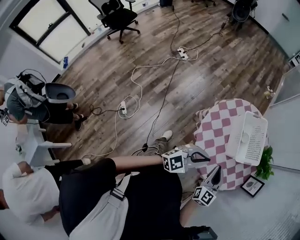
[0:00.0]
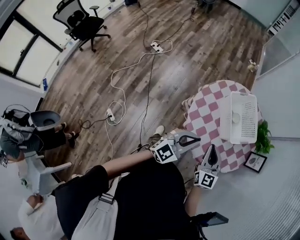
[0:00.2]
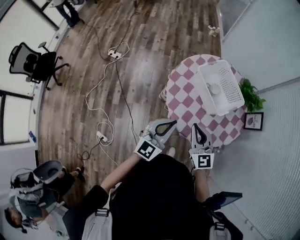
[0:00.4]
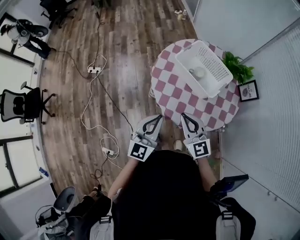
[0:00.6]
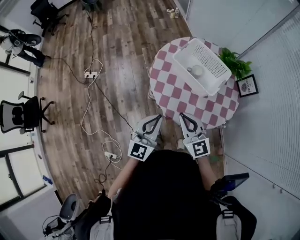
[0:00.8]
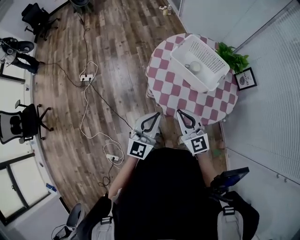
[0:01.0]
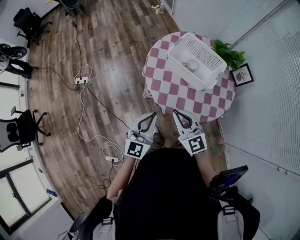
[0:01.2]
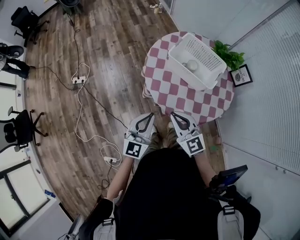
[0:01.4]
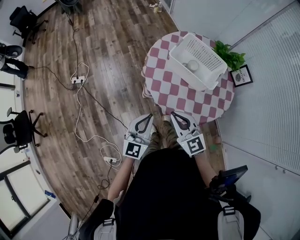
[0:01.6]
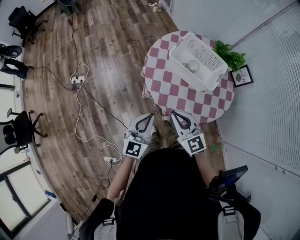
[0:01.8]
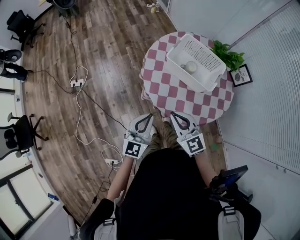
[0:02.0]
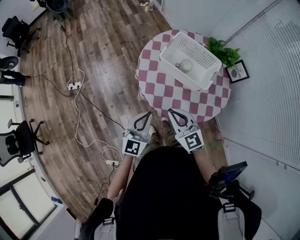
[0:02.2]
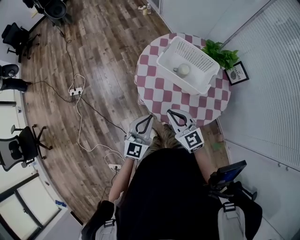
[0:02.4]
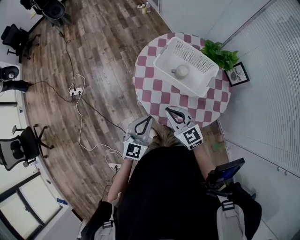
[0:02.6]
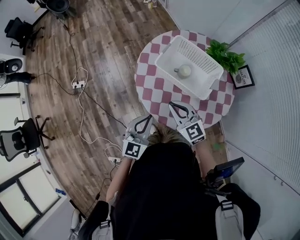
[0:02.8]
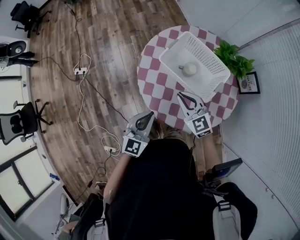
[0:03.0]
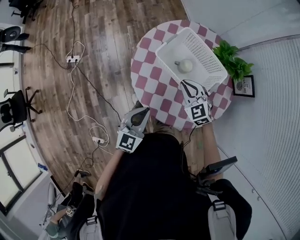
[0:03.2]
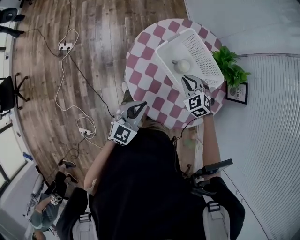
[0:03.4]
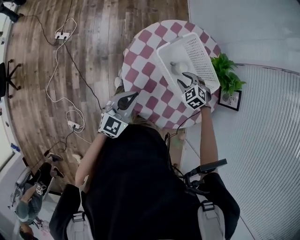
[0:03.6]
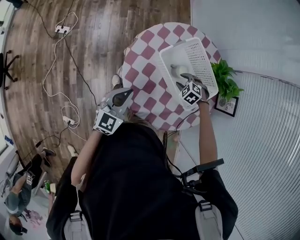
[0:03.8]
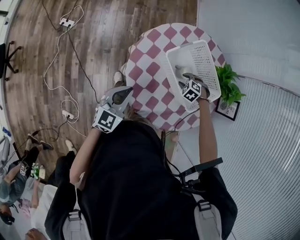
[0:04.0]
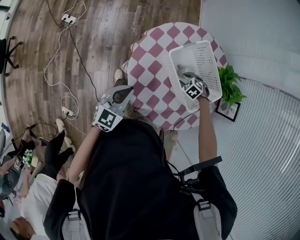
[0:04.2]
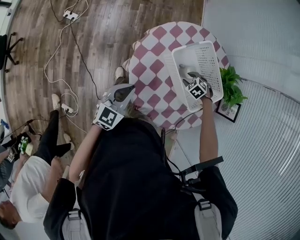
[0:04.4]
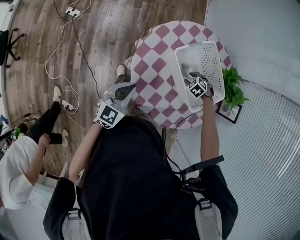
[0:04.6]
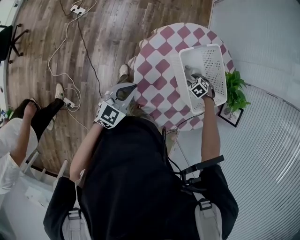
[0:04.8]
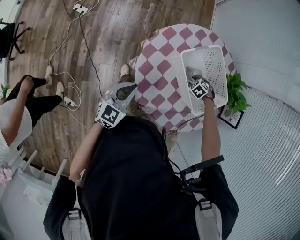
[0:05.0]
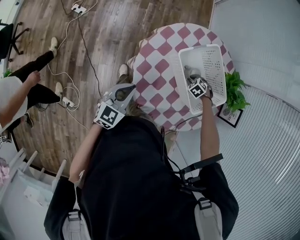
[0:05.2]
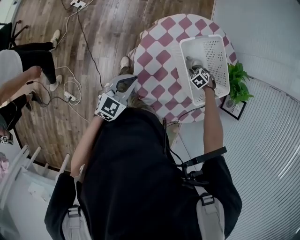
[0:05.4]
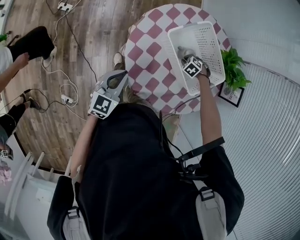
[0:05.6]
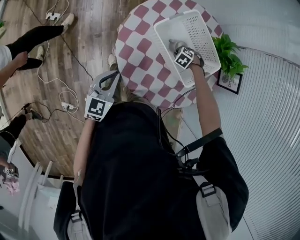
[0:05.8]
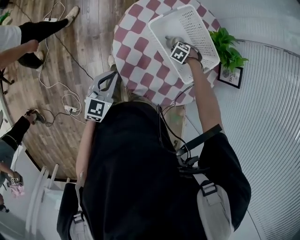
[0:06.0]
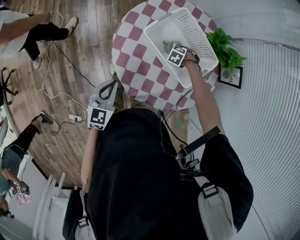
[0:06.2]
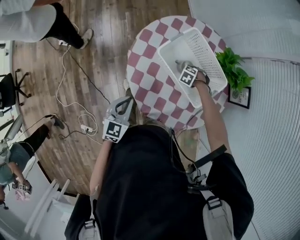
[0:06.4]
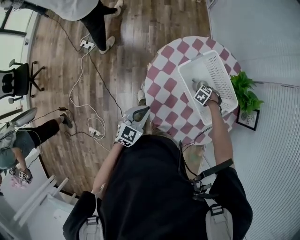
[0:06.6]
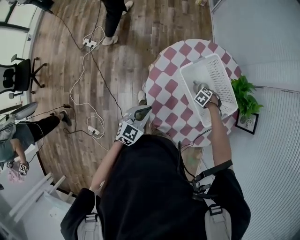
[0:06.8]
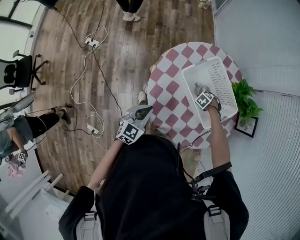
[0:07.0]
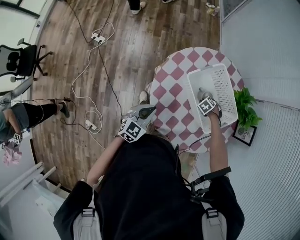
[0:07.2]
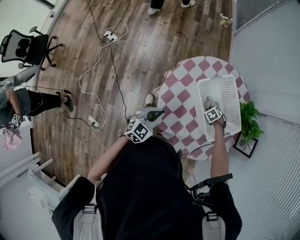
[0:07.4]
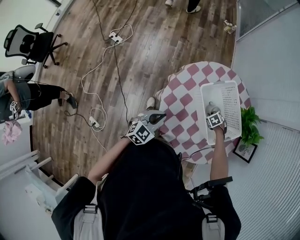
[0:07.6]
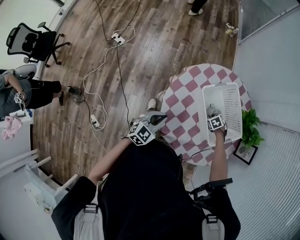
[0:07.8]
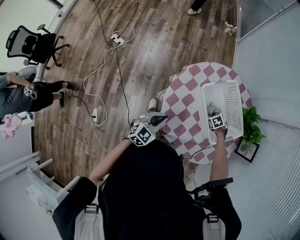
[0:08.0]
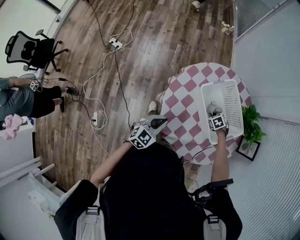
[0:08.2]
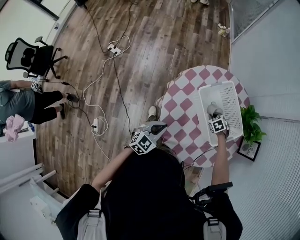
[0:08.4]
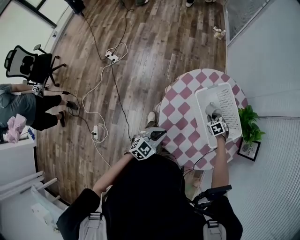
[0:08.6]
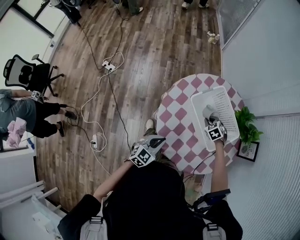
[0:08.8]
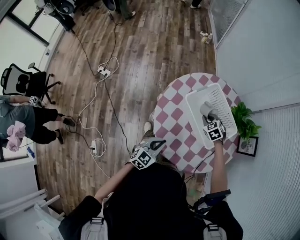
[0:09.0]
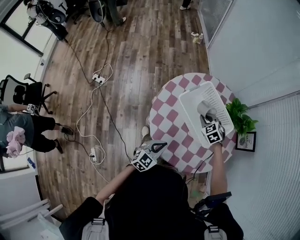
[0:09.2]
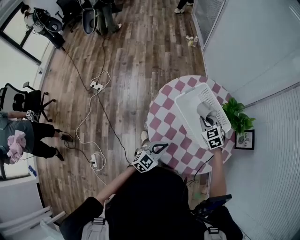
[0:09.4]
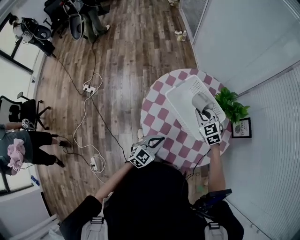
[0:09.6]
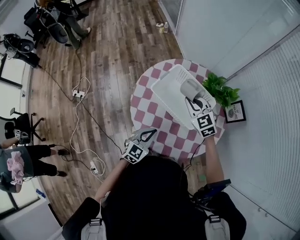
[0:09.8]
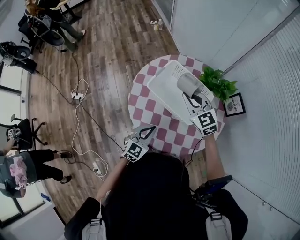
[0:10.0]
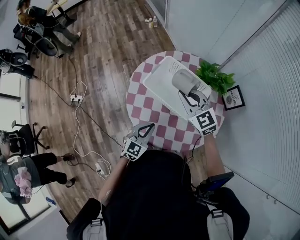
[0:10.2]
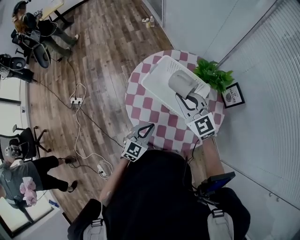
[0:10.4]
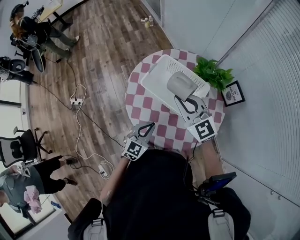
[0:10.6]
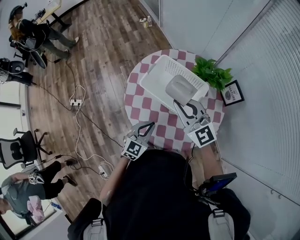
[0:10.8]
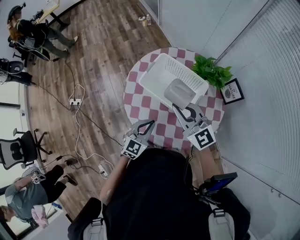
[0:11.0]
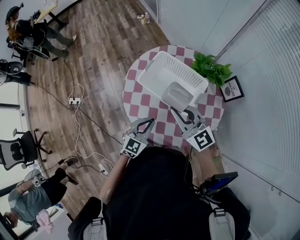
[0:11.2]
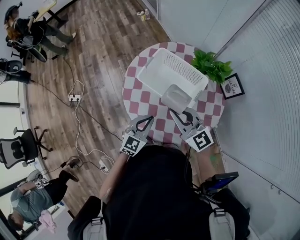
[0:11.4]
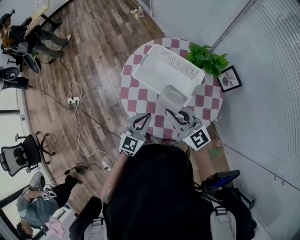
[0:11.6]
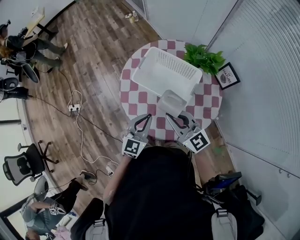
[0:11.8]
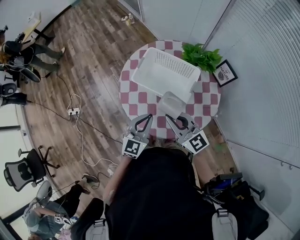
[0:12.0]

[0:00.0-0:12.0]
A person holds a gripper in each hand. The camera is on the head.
0:00.0 to 0:01.6: The left gripper is displaced to the left and forward by about 25 cm; the right gripper is displaced to the left by roughly 20 cm.
0:01.6 to 0:03.0: The right gripper moves forward and to the right, approximately 20 cm. Meanwhile the left gripper heads to the right and forward, covering about 15 cm.
0:03.0 to 0:04.4: The right gripper shifts some 25 cm downward, tips its fingers downward by approximately 60 degrees, and opens up. The left gripper changes place by some 10 cm.
0:04.4 to 0:06.0: The right gripper is displaced downward by some 5 cm, and closes its fingers.
0:06.0 to 0:07.6: There are only small adjustments of the grippers.
0:07.6 to 0:09.0: The left gripper moves some 10 cm, while the right gripper goes roughly 15 cm upward, and swivels roughly 30 degrees.
0:09.0 to 0:10.4: The right gripper goes roughly 25 cm upward, and angles its fingers upward, by some 40 degrees. Meanwhile the left gripper moves to the right, approximately 5 cm.
0:10.4 to 0:12.0: The left gripper is displaced upward by roughly 5 cm. Meanwhile the right gripper is displaced backward by about 15 cm.

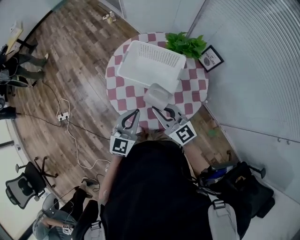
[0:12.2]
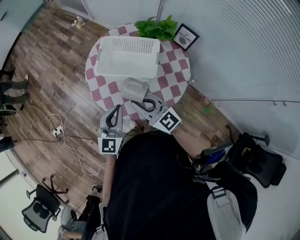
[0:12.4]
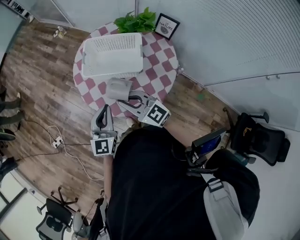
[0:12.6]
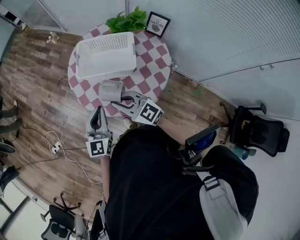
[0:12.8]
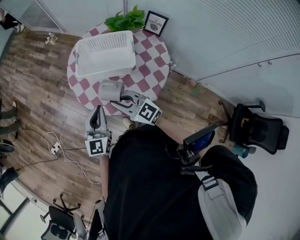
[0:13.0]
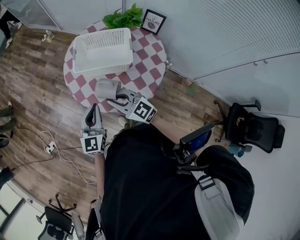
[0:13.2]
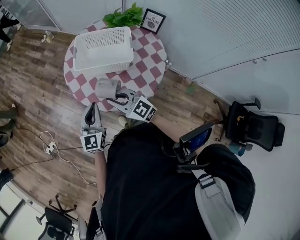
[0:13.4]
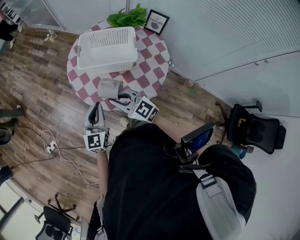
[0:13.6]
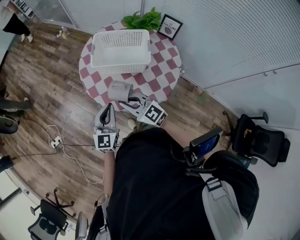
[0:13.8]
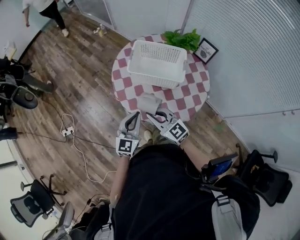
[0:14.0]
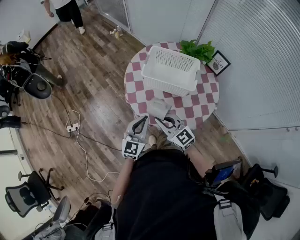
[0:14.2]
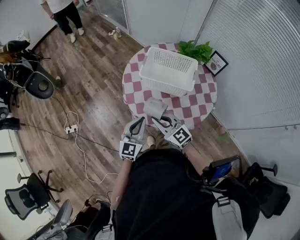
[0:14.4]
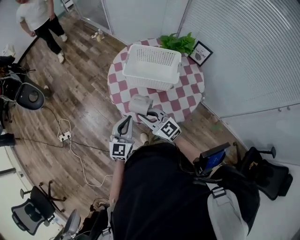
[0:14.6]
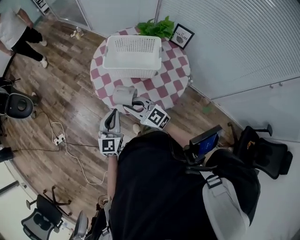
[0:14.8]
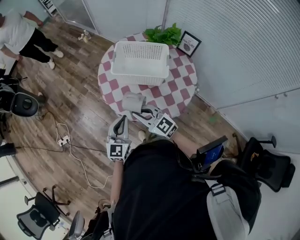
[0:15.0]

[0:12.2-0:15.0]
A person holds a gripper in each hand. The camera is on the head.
0:12.2 to 0:13.6: Both grippers move to the left, some 10 cm.
0:13.6 to 0:15.0: The left gripper moves backward, about 5 cm.

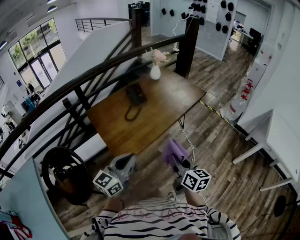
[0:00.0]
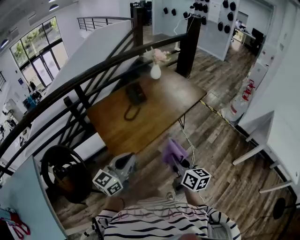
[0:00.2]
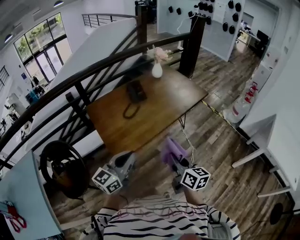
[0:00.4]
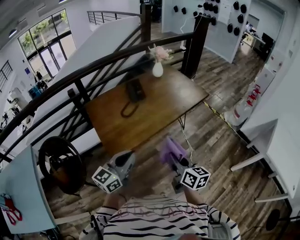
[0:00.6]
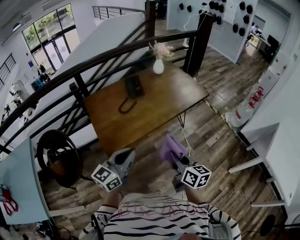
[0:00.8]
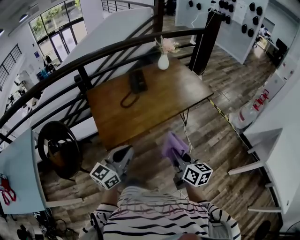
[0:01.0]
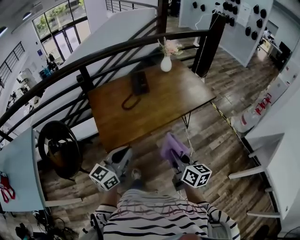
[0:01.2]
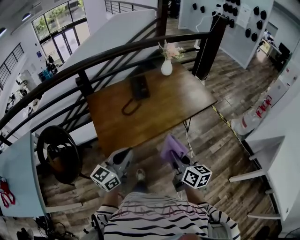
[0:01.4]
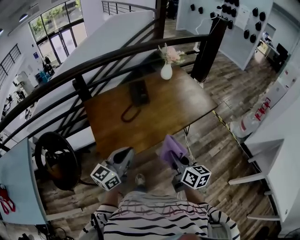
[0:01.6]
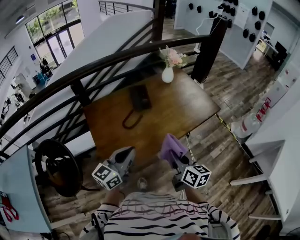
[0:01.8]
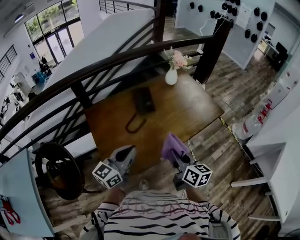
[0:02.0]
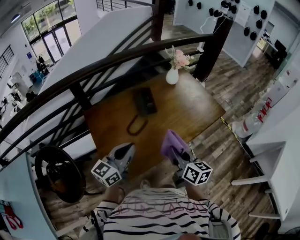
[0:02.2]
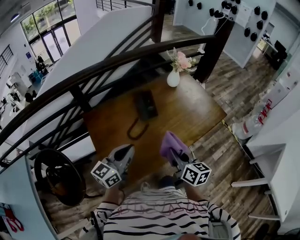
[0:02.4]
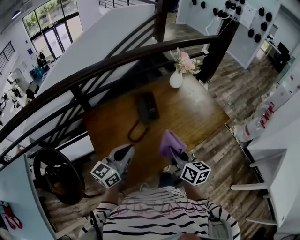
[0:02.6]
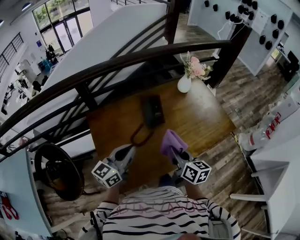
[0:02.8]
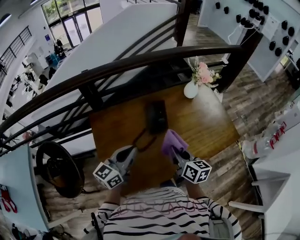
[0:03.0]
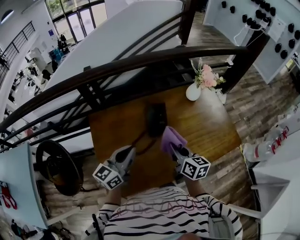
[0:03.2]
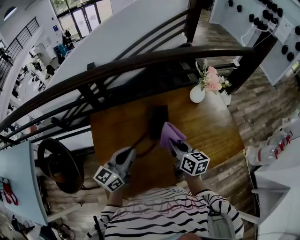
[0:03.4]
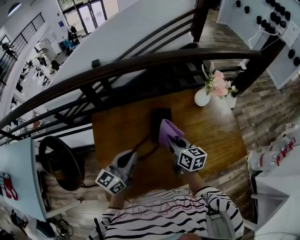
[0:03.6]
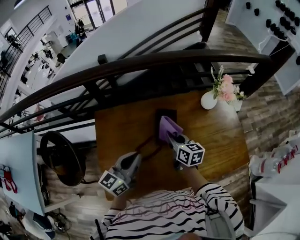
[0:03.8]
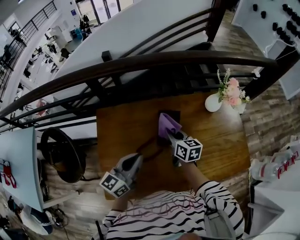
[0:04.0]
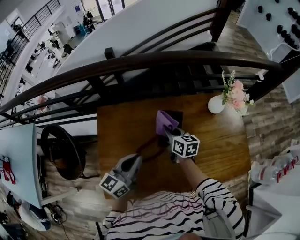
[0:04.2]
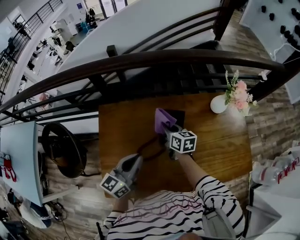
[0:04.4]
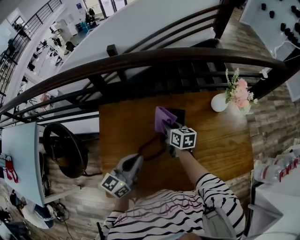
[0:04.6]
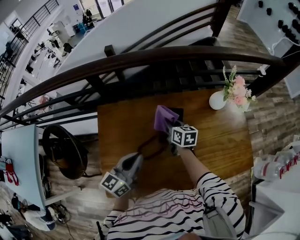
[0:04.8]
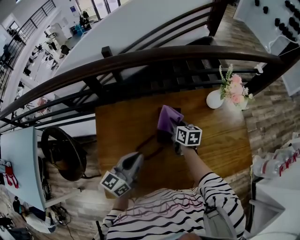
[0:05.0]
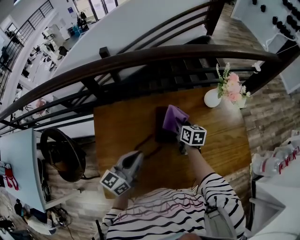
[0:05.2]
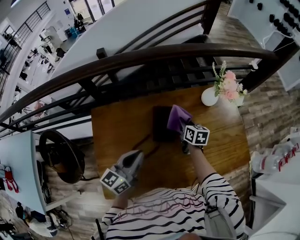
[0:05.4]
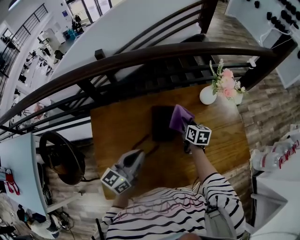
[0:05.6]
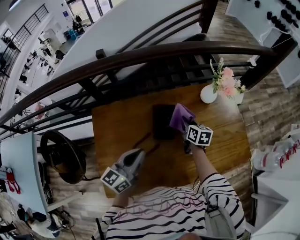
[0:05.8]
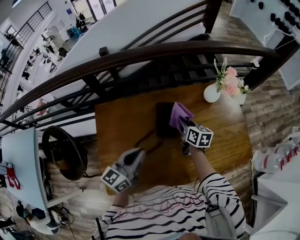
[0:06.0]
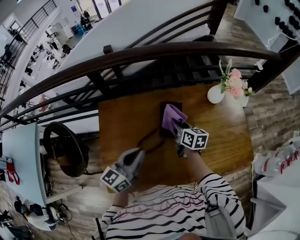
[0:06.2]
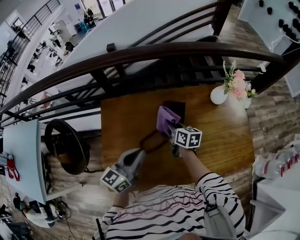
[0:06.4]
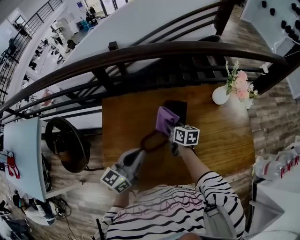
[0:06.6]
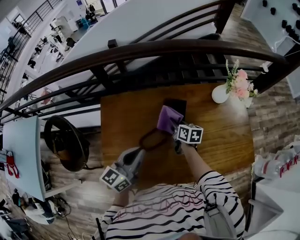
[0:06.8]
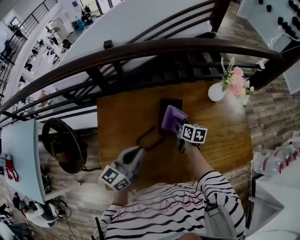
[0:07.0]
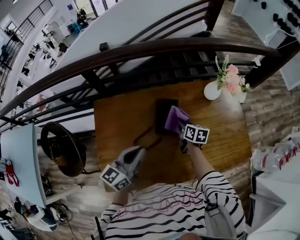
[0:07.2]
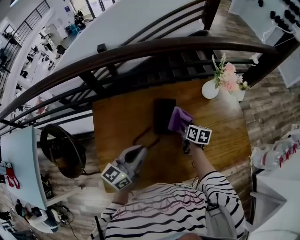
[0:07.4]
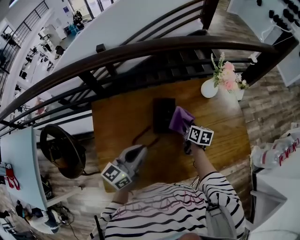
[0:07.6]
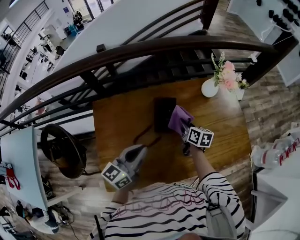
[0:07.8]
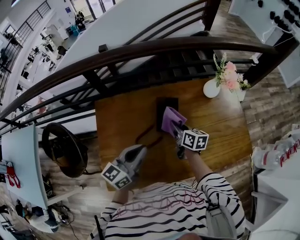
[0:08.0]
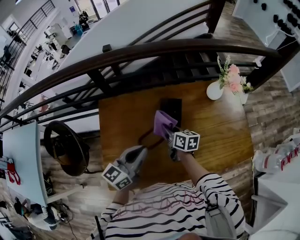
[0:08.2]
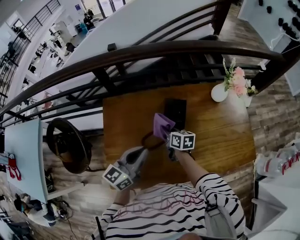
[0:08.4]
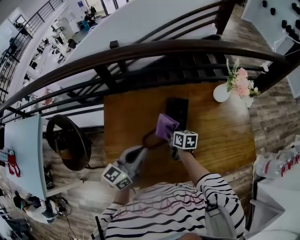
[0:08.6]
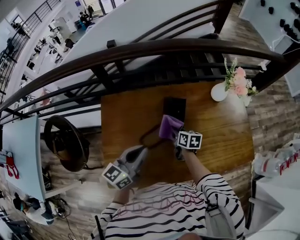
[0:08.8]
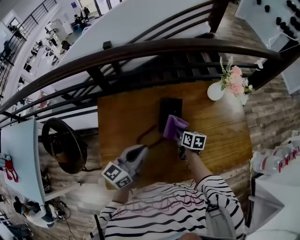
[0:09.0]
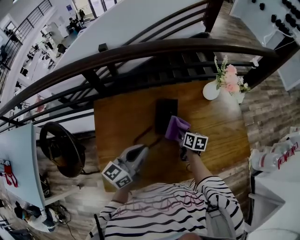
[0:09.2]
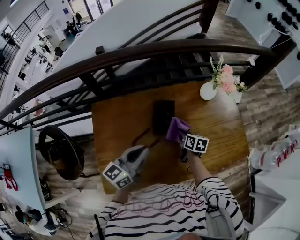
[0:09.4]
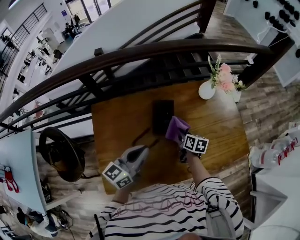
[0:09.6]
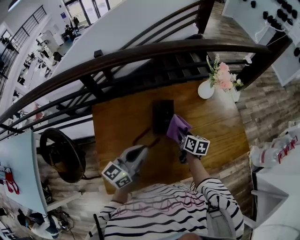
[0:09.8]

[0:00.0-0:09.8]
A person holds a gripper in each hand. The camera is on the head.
0:00.0 to 0:01.4: The right gripper is displaced forward and to the right by about 20 cm. The left gripper shifts approximately 15 cm to the right and forward.
0:01.4 to 0:02.8: The grippers both shift forward and to the left by approximately 35 cm.
0:02.8 to 0:04.2: The left gripper goes roughly 15 cm forward, and changes its angle by about 20 degrees. Meanwhile the right gripper heads forward, covering roughly 35 cm, and turns by some 30 degrees.
0:04.2 to 0:05.6: The right gripper shifts roughly 15 cm to the right.
0:05.6 to 0:07.0: The right gripper travels to the left by some 5 cm.
0:07.0 to 0:08.4: The right gripper shifts some 10 cm to the left and backward.
0:08.4 to 0:09.8: The right gripper travels to the right by about 15 cm.
